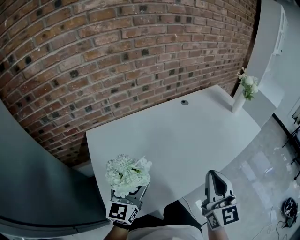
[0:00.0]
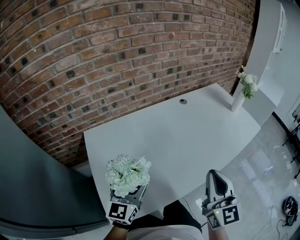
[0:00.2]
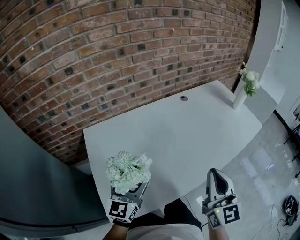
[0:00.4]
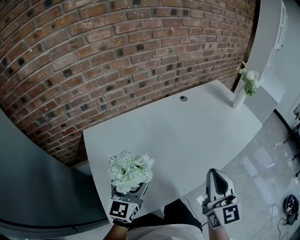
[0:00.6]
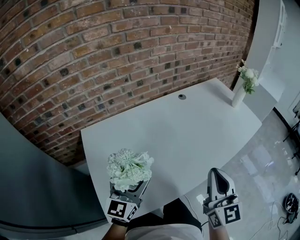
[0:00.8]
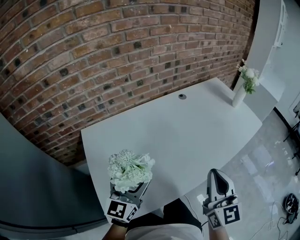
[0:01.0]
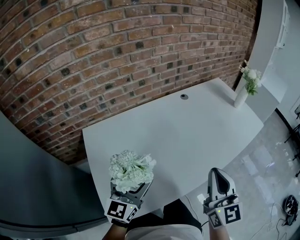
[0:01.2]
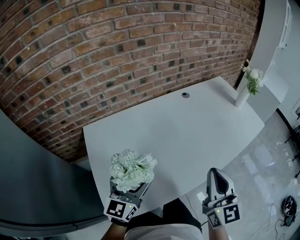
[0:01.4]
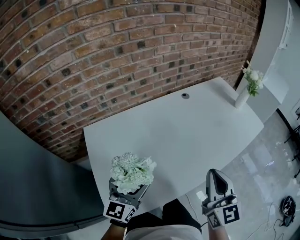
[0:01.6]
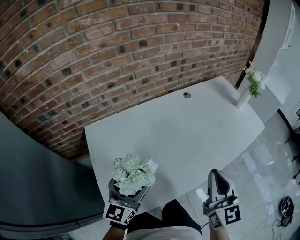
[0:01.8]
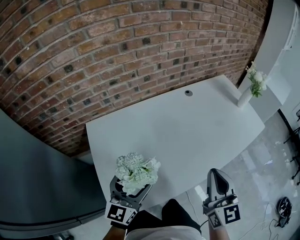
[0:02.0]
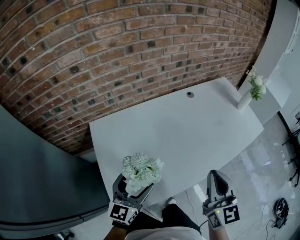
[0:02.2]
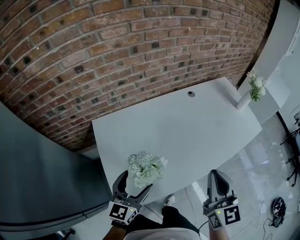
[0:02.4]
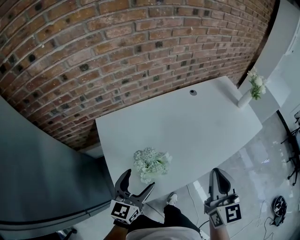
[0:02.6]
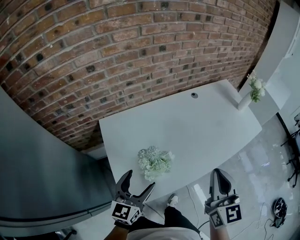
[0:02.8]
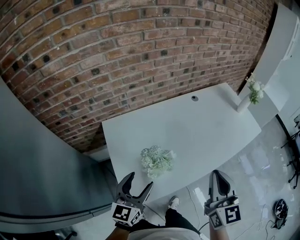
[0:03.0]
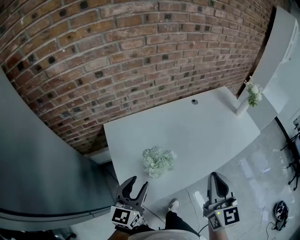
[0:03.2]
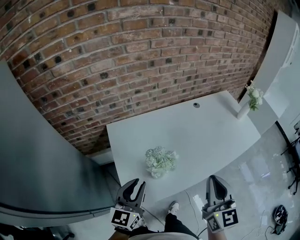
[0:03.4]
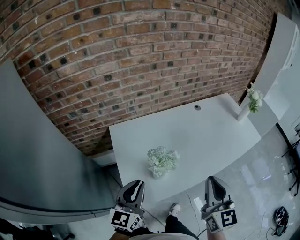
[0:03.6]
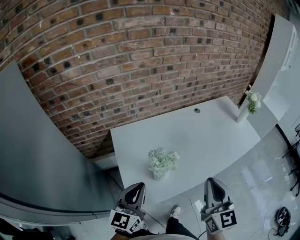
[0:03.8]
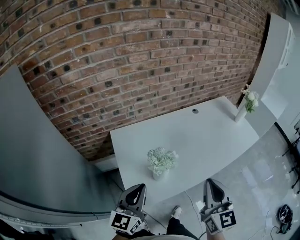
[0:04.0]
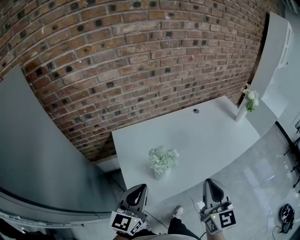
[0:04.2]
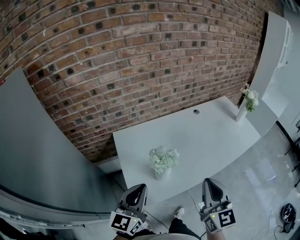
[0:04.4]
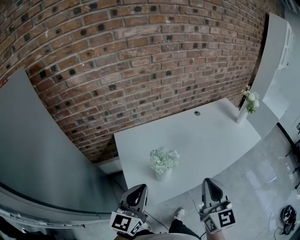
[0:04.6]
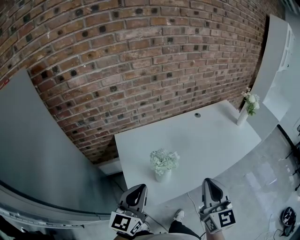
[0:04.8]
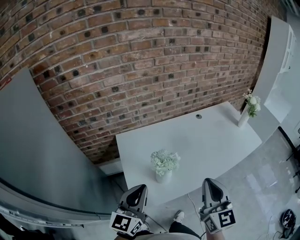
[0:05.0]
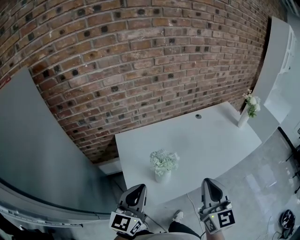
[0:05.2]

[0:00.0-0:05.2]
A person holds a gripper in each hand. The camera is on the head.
0:00.0 to 0:01.8: The grippers stay close to where they were, moving slightly.
0:01.8 to 0:03.4: The right gripper goes roughly 15 cm upward, backward and to the left; the left gripper moves backward, upward and to the left, roughly 15 cm, and closes.
0:03.4 to 0:05.2: The left gripper moves upward, about 5 cm. The right gripper moves some 5 cm.

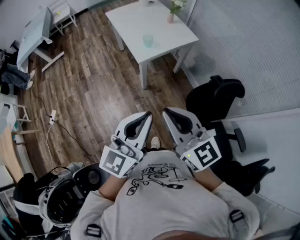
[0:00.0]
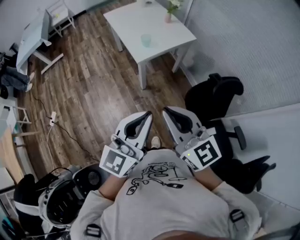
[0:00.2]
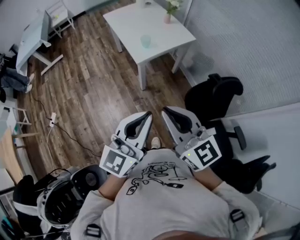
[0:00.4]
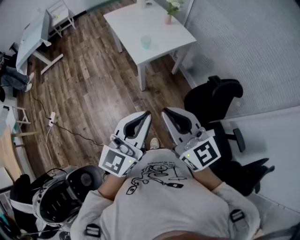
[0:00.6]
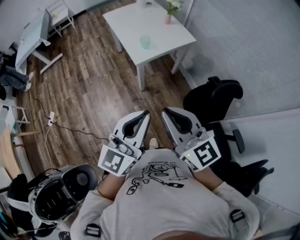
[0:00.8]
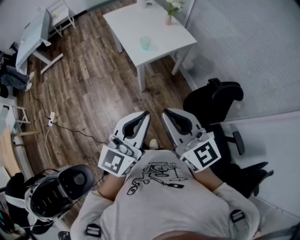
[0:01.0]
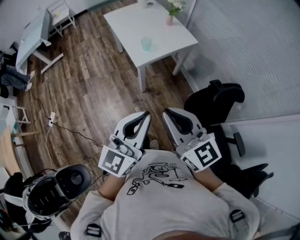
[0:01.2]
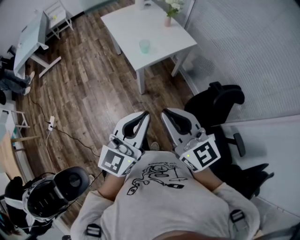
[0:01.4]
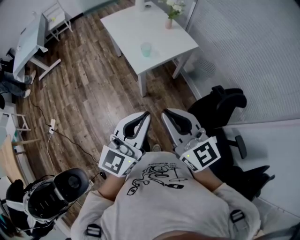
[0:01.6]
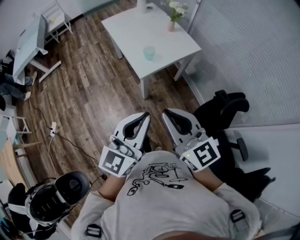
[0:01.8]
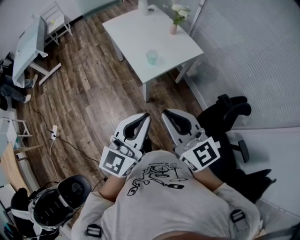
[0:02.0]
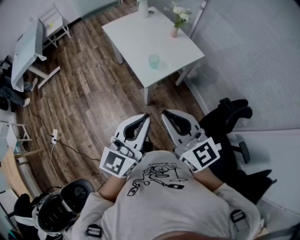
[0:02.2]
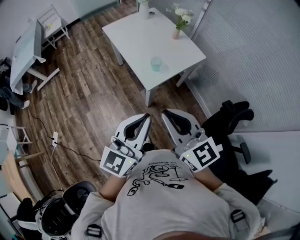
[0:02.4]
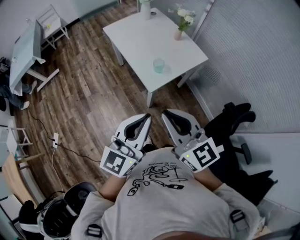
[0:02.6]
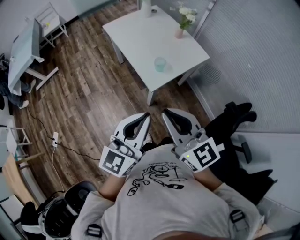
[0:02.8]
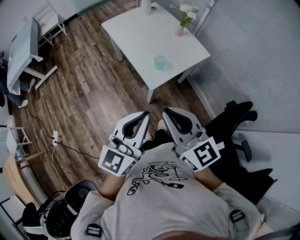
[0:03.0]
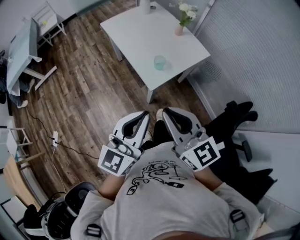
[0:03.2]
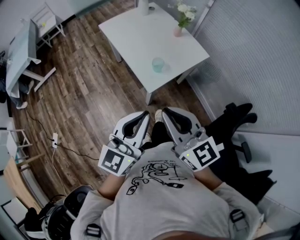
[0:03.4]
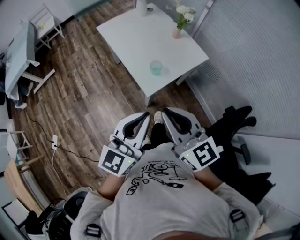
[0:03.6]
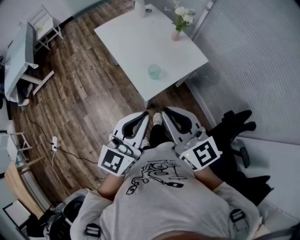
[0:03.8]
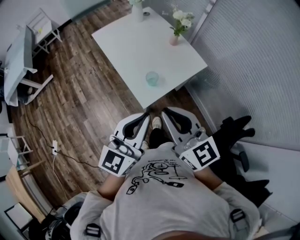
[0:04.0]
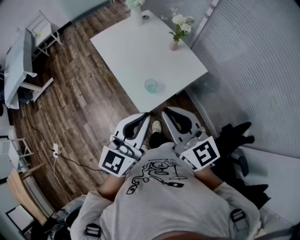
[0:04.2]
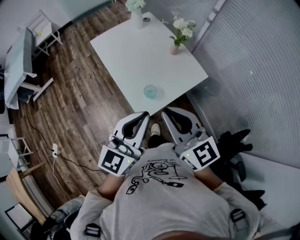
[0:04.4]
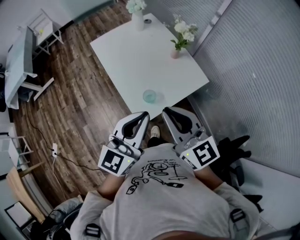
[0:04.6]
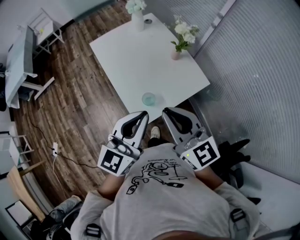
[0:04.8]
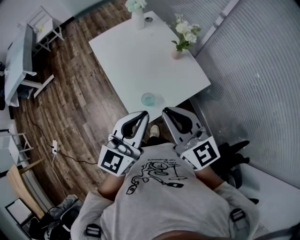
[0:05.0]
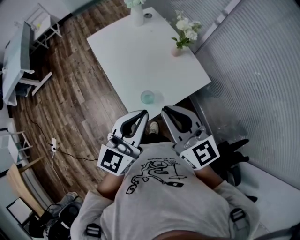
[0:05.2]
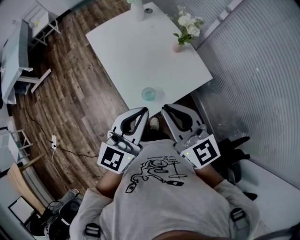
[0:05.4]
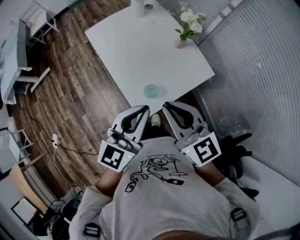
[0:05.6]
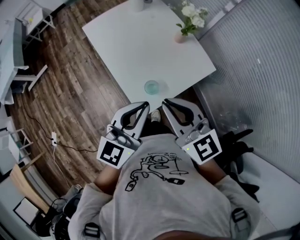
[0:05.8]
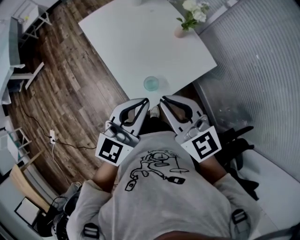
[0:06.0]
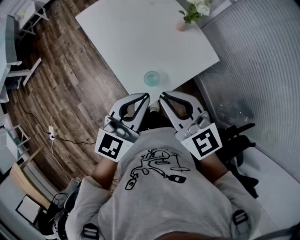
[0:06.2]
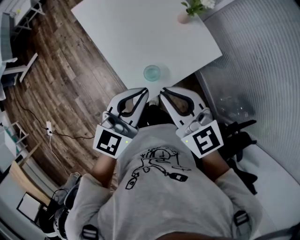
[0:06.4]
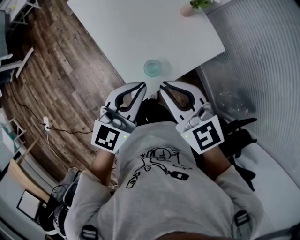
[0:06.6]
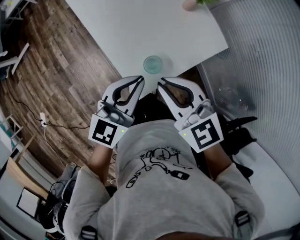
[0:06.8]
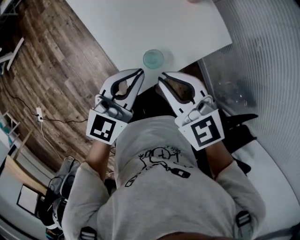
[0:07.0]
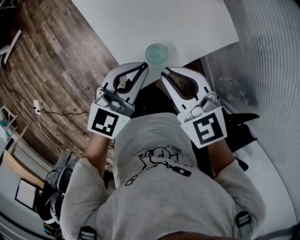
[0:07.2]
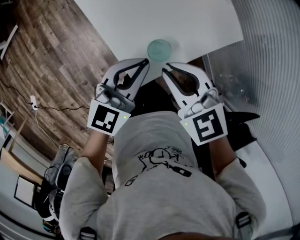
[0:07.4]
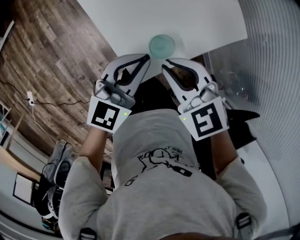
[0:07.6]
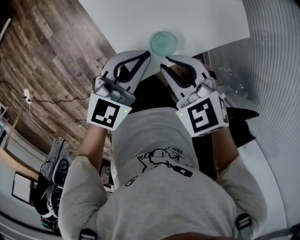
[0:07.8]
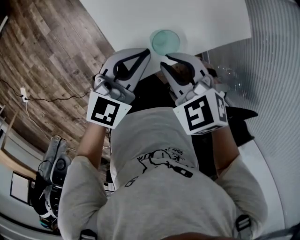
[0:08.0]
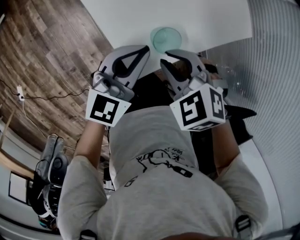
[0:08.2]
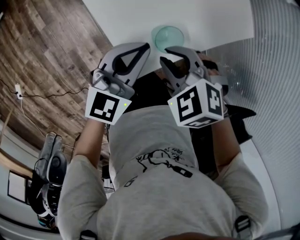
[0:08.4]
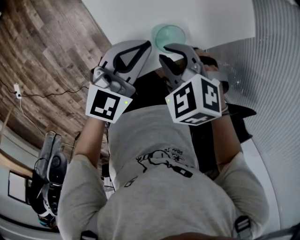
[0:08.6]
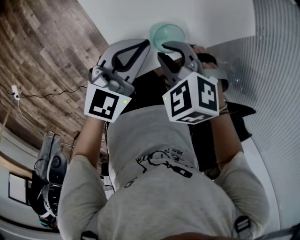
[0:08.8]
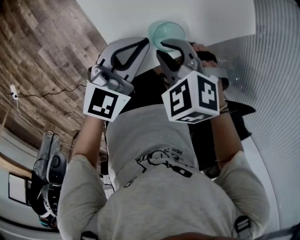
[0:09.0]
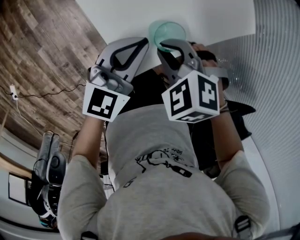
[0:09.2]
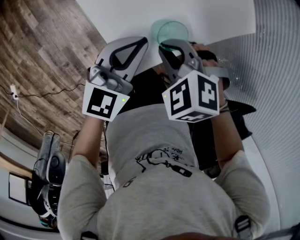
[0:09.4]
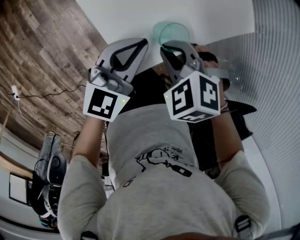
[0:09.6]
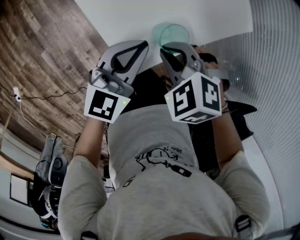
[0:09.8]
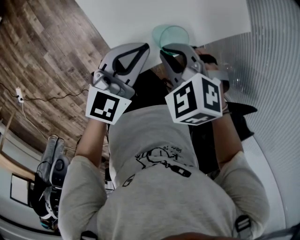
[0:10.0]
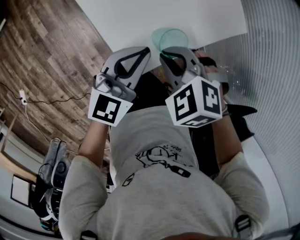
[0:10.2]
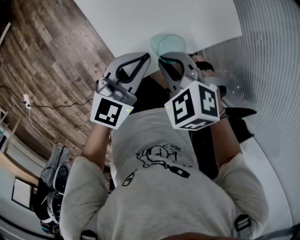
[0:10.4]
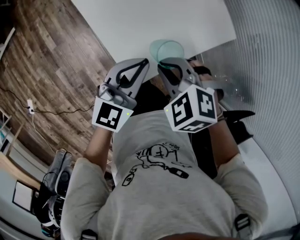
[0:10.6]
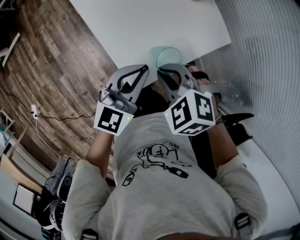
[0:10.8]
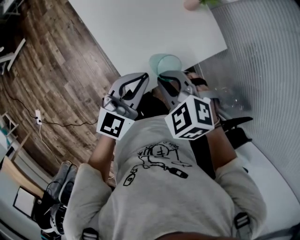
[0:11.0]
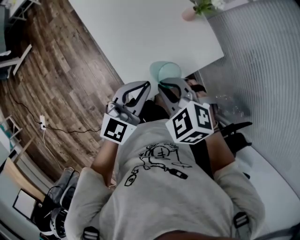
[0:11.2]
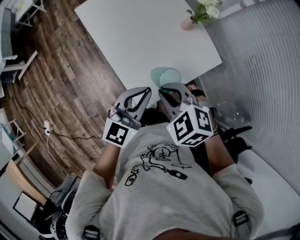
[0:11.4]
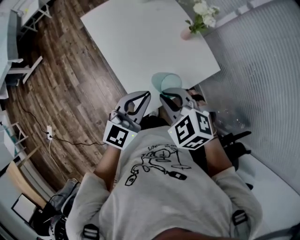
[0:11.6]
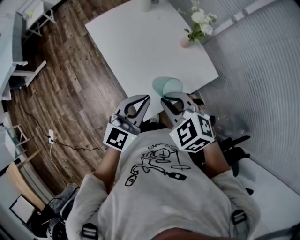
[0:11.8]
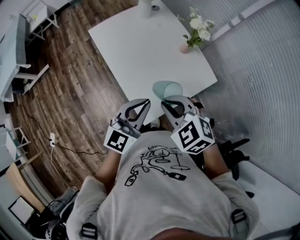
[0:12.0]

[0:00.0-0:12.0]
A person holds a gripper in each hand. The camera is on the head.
0:00.0 to 0:01.6: The two grippers go approximately 10 cm forward.
0:01.6 to 0:03.0: The grippers both shift forward and to the left by approximately 20 cm.
0:03.0 to 0:04.4: Both grippers travel together forward, about 20 cm.
0:04.4 to 0:06.0: Both grippers travel together forward and downward, about 10 cm.
0:06.0 to 0:07.6: The grippers both shift downward by roughly 20 cm. The right gripper changes its angle by roughly 30 degrees.
0:07.6 to 0:09.0: The right gripper shifts approximately 5 cm downward, and changes its angle by roughly 30 degrees.
0:09.0 to 0:10.4: There are only small adjustments of the grippers.
0:10.4 to 0:12.0: Both grippers travel together upward, approximately 20 cm. The right gripper swivels some 20 degrees.

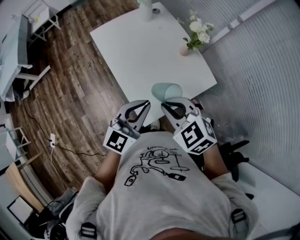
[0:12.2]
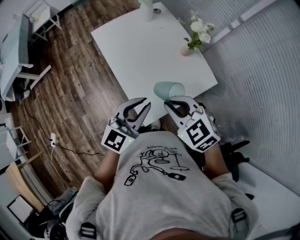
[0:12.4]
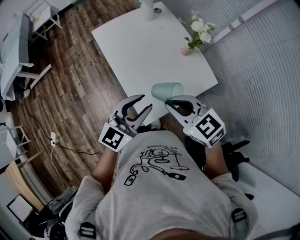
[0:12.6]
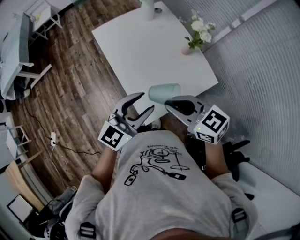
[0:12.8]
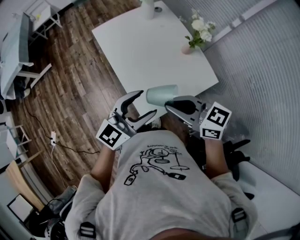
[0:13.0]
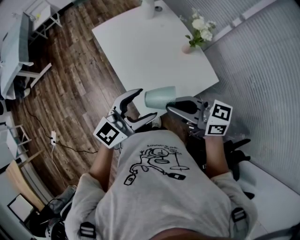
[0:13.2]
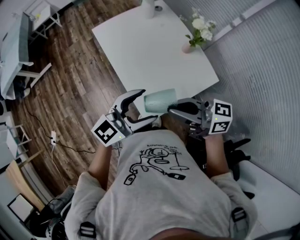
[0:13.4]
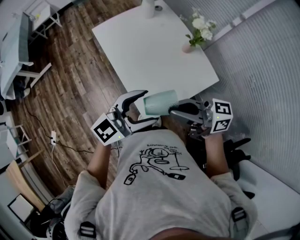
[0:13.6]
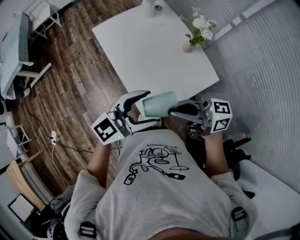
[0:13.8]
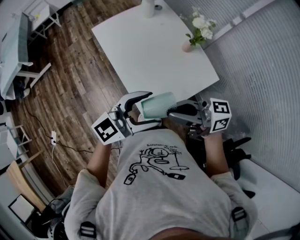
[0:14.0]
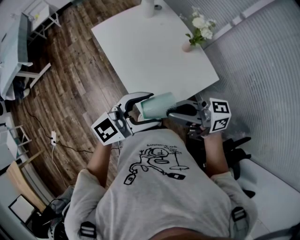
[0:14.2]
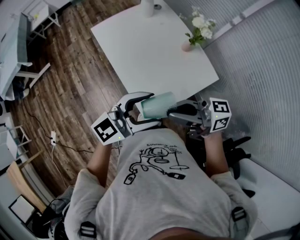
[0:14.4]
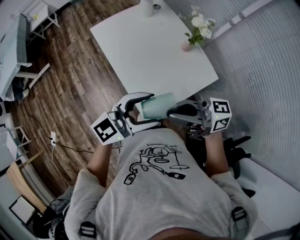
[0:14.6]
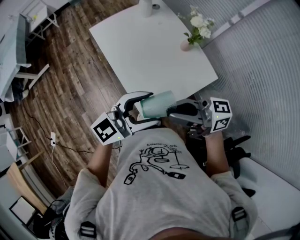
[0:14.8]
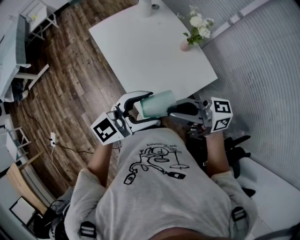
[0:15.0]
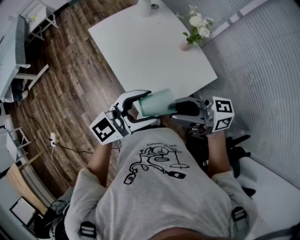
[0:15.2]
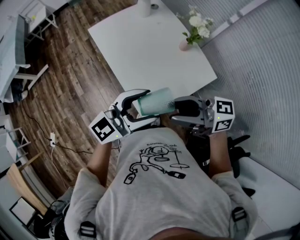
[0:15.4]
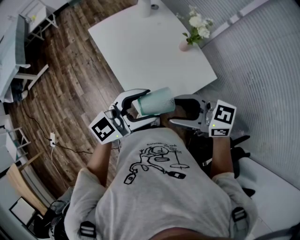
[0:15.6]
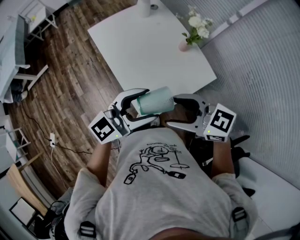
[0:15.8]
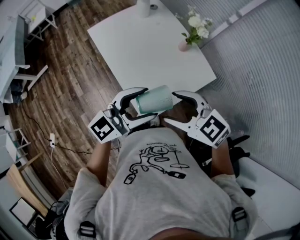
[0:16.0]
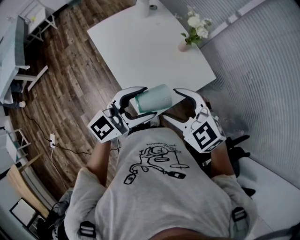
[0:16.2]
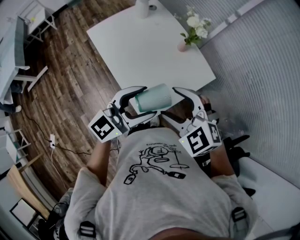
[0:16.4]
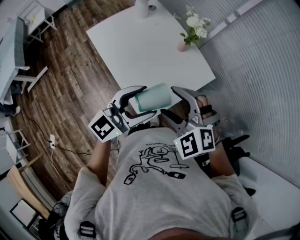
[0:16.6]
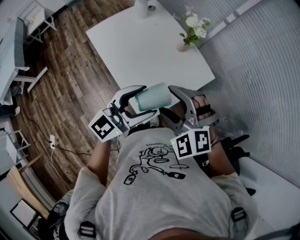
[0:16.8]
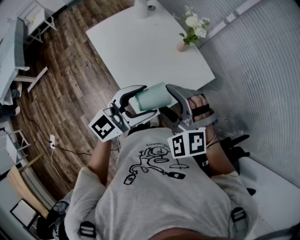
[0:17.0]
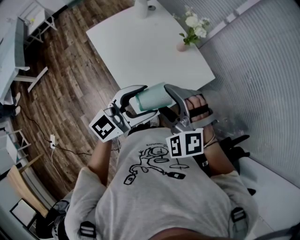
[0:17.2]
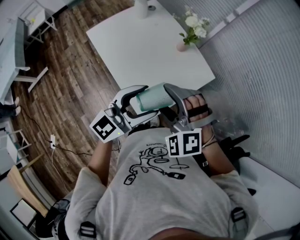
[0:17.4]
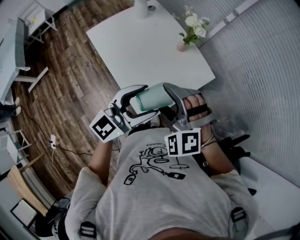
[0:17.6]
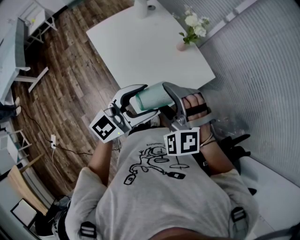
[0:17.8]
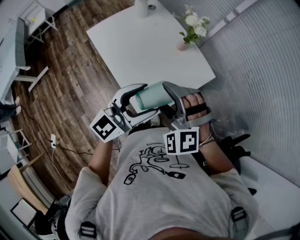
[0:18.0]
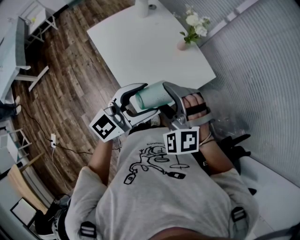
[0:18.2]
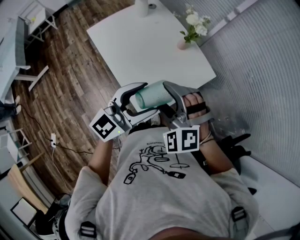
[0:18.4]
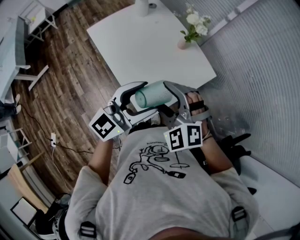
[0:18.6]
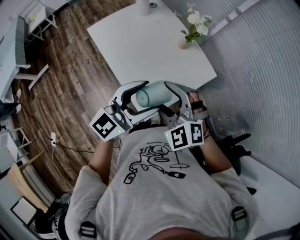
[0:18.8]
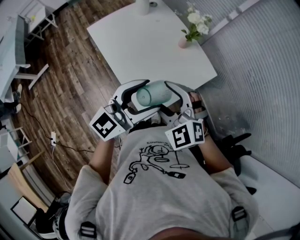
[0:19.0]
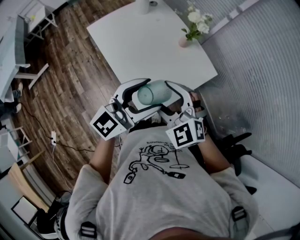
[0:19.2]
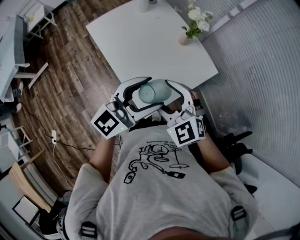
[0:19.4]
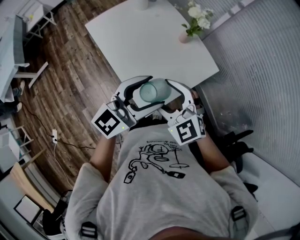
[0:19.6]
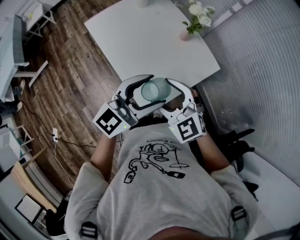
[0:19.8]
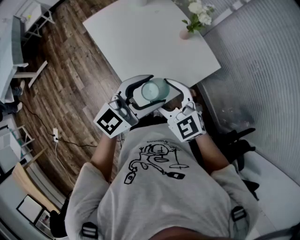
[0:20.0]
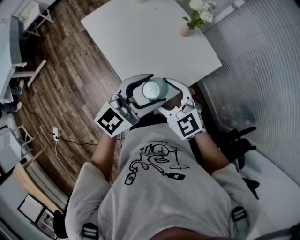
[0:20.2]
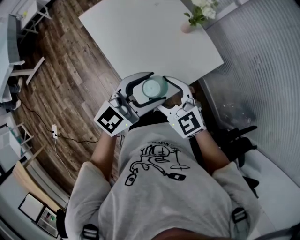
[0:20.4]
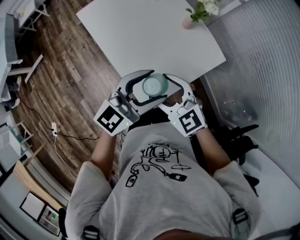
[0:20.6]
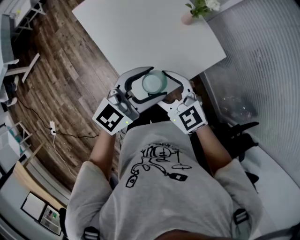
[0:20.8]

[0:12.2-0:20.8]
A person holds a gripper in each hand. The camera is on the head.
0:12.2 to 0:13.6: The left gripper rotates approximately 20 degrees, and opens its fingers. The right gripper ends up about 5 cm from where it was, and points its fingers about 50 degrees further upward.
0:13.6 to 0:15.0: The grippers move only a little.
0:15.0 to 0:16.6: The right gripper points its fingers about 50 degrees further downward, and opens up.
0:16.6 to 0:18.0: The grippers stay close to where they were, moving slightly.
0:18.0 to 0:19.4: The right gripper rotates some 40 degrees.
0:19.4 to 0:20.8: The two grippers go some 10 cm downward.
